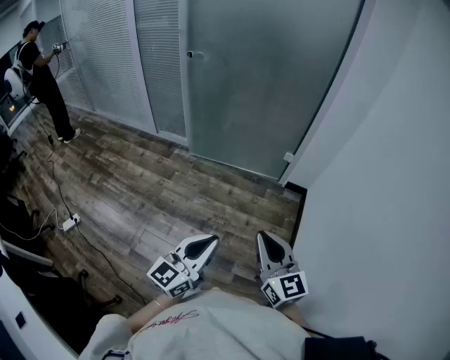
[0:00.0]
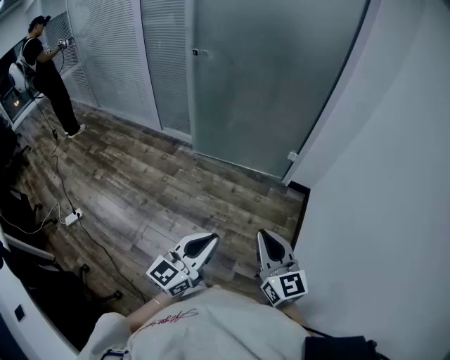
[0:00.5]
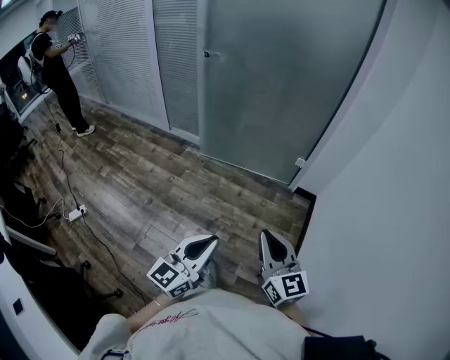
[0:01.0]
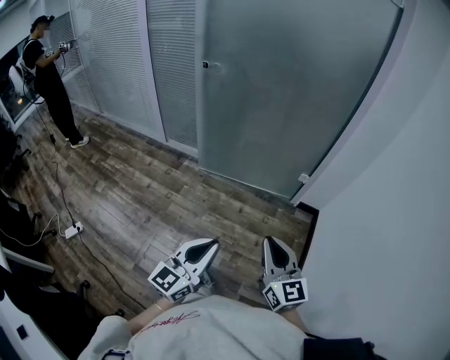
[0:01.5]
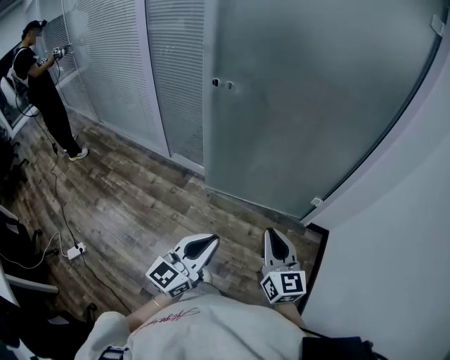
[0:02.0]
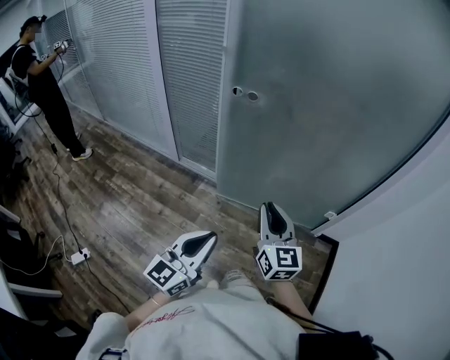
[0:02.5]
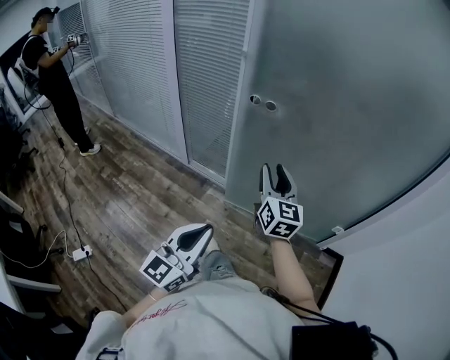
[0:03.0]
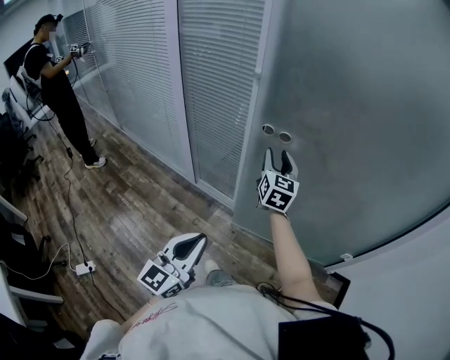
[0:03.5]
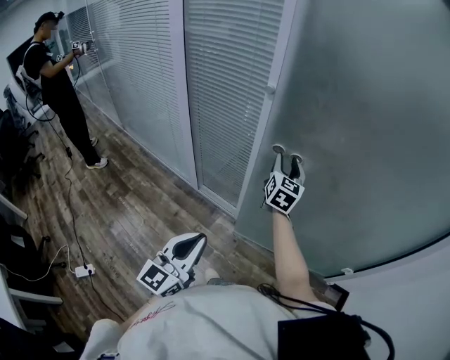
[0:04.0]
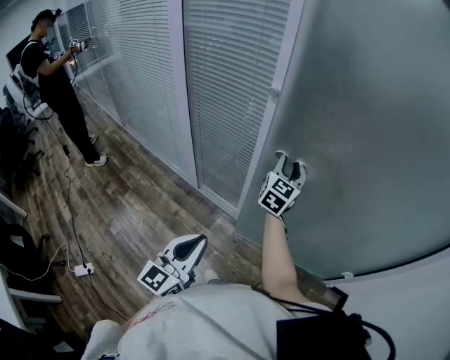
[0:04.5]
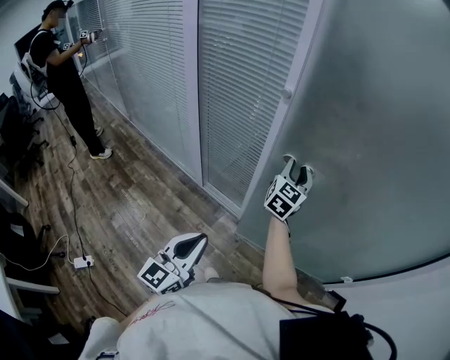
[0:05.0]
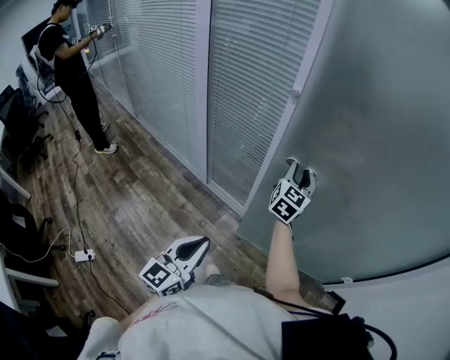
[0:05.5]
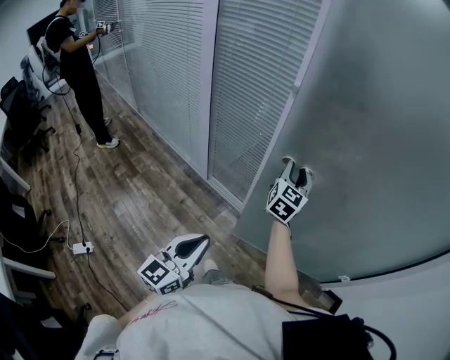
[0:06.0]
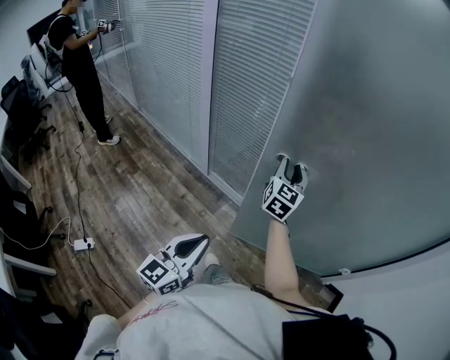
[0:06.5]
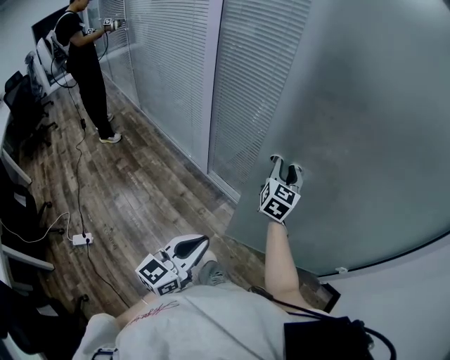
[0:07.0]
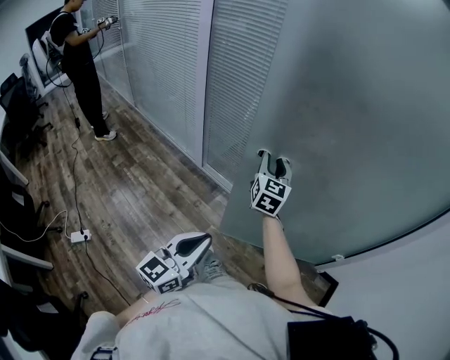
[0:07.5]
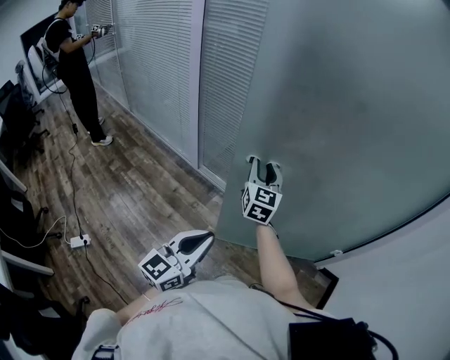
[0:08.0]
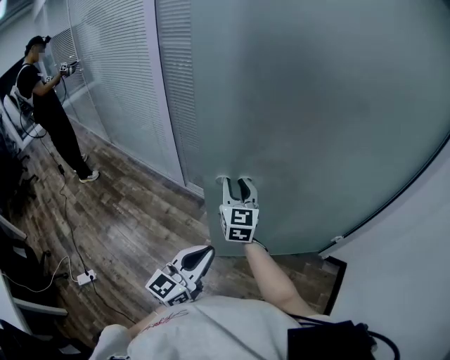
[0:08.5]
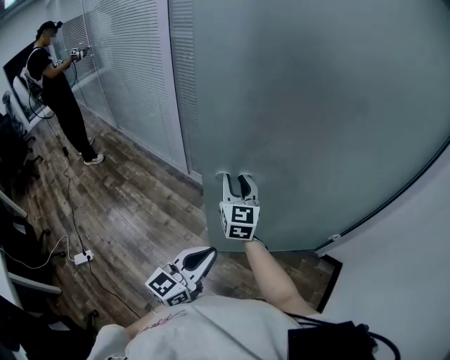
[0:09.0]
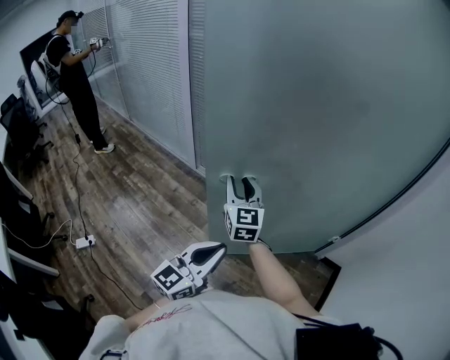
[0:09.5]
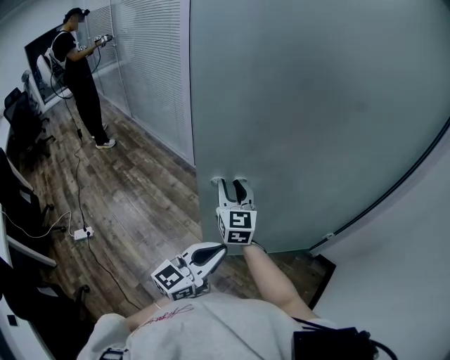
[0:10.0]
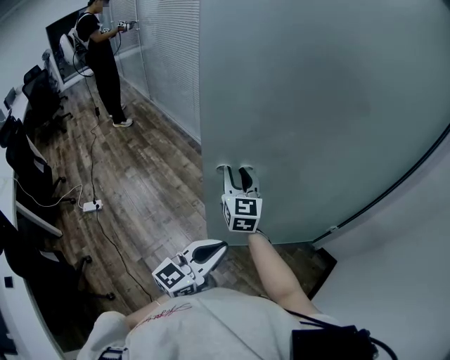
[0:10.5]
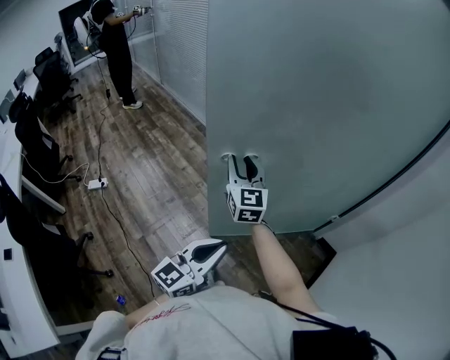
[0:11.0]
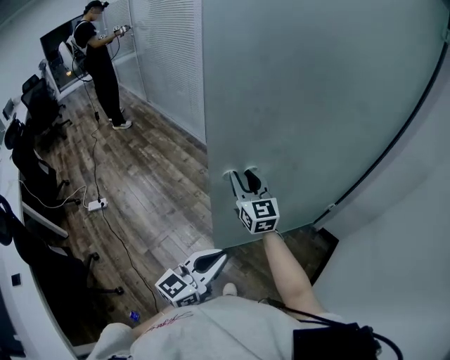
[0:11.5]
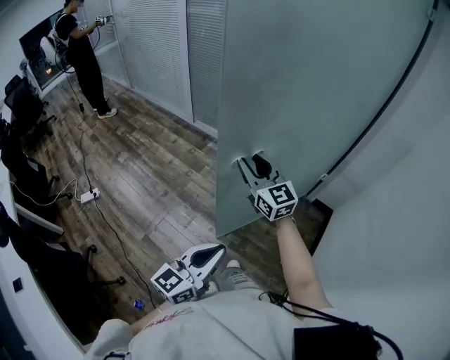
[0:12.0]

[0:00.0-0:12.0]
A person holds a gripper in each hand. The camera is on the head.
0:00.0 to 0:02.0: The grippers both shift forward and to the left by roughly 35 cm.
0:02.0 to 0:04.0: The left gripper is displaced to the left and forward by some 35 cm, while the right gripper travels forward and to the left by about 60 cm, and opens.
0:04.0 to 0:06.0: The right gripper shifts about 5 cm backward.
0:06.0 to 0:08.0: The left gripper goes roughly 15 cm backward and to the right; the right gripper travels backward by roughly 15 cm.
0:08.0 to 0:10.0: The left gripper goes about 20 cm to the right and backward, while the right gripper heads backward, covering about 20 cm.
0:10.0 to 0:12.0: The left gripper moves backward, about 30 cm. Meanwhile the right gripper travels backward and to the right by some 25 cm.

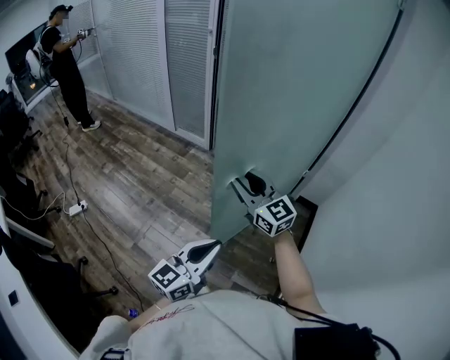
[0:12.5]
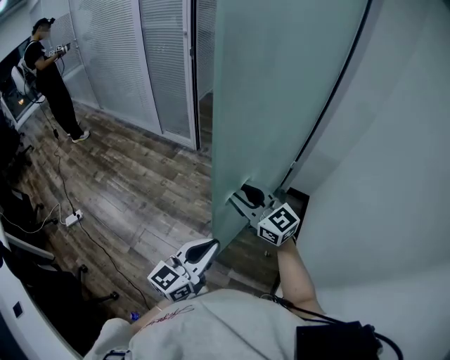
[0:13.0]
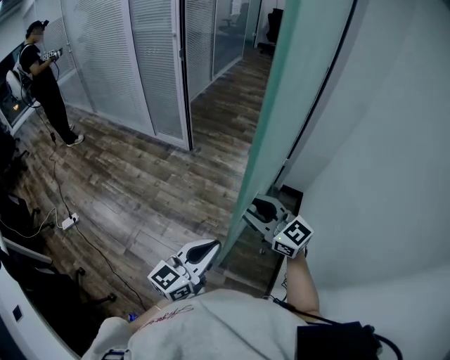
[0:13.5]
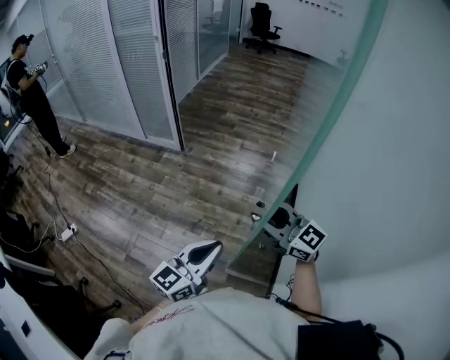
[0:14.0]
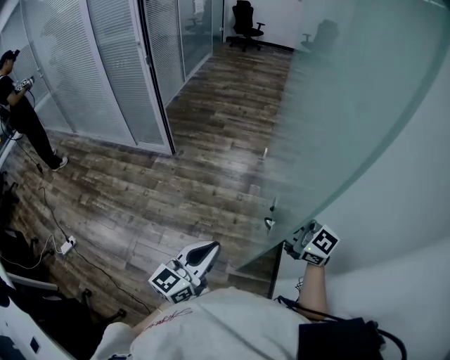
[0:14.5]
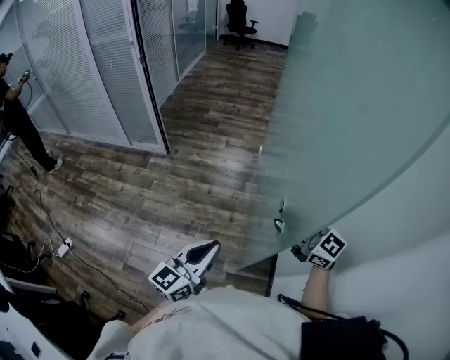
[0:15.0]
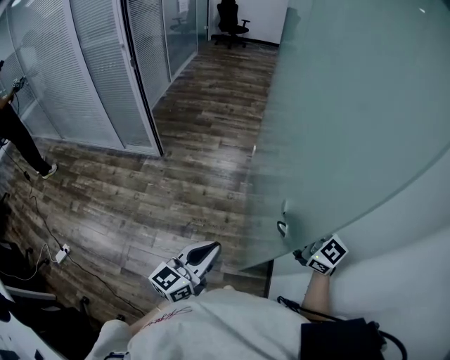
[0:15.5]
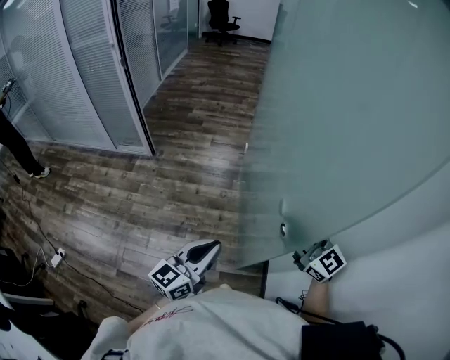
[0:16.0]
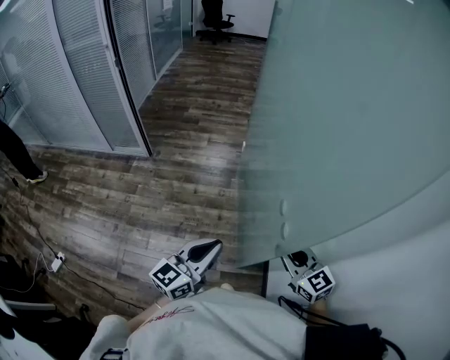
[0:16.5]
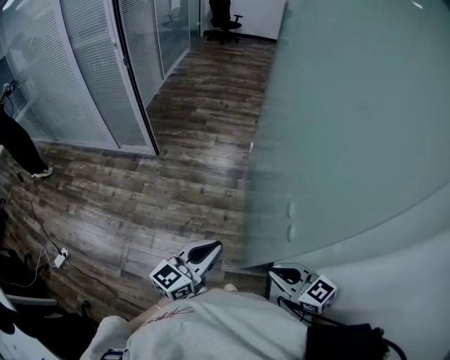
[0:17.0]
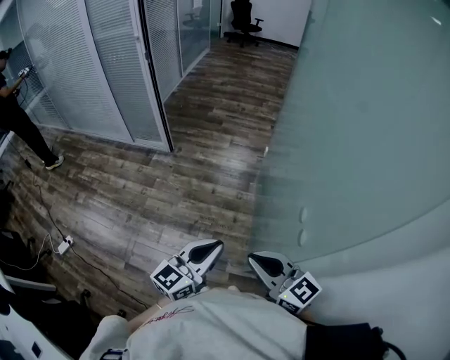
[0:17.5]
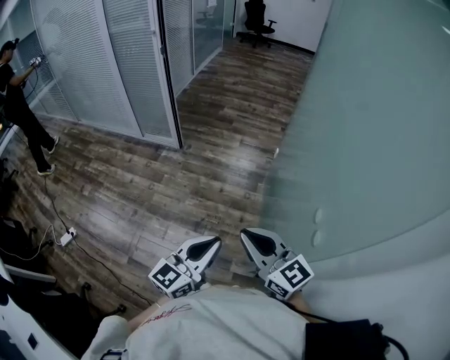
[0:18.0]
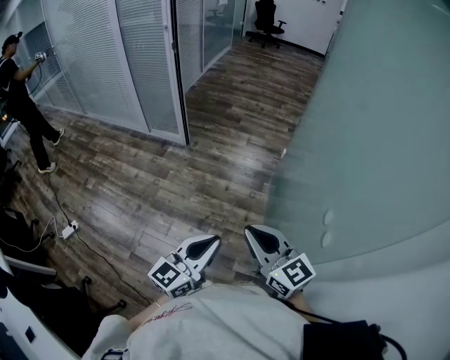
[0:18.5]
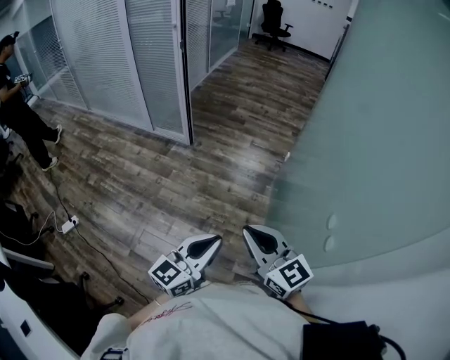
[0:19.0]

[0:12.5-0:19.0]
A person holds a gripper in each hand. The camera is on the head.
0:12.5 to 0:14.5: The right gripper shifts about 30 cm to the right and backward, while the left gripper travels to the right by some 10 cm.
0:14.5 to 0:17.0: The right gripper is displaced backward and downward by approximately 15 cm, rotates roughly 30 degrees, and closes.
0:17.0 to 0:19.0: The right gripper goes roughly 25 cm to the left, forward and upward, and turns by some 20 degrees. The left gripper heads to the left, covering approximately 10 cm.

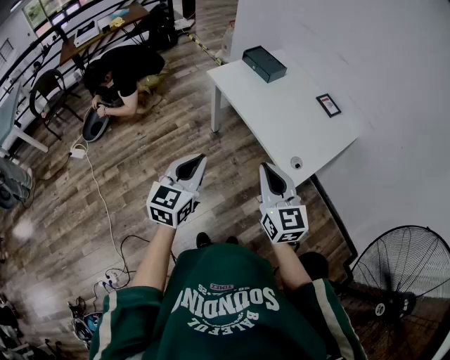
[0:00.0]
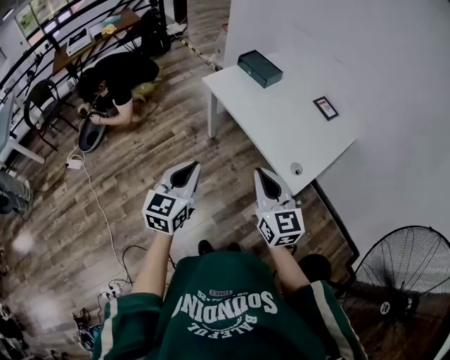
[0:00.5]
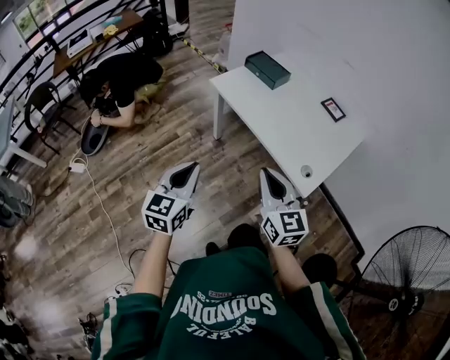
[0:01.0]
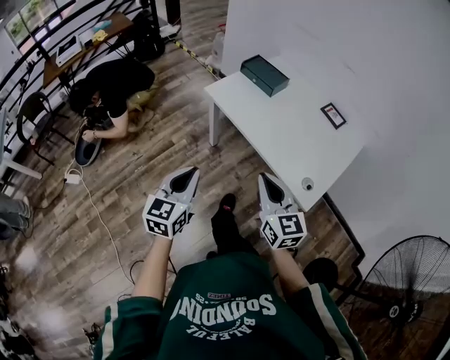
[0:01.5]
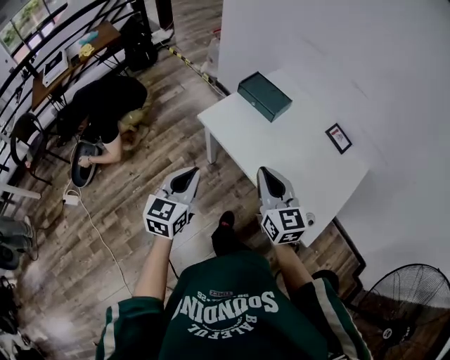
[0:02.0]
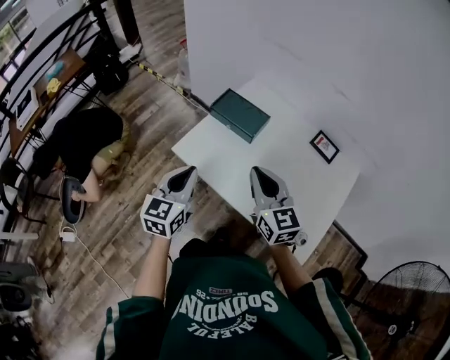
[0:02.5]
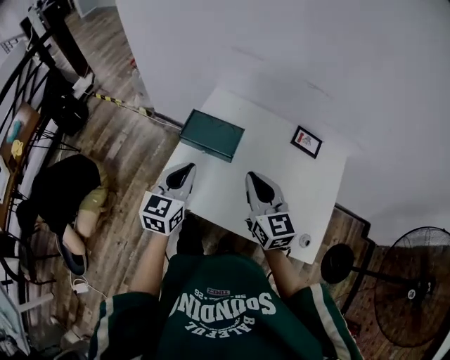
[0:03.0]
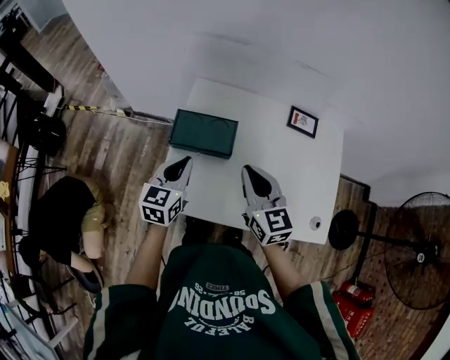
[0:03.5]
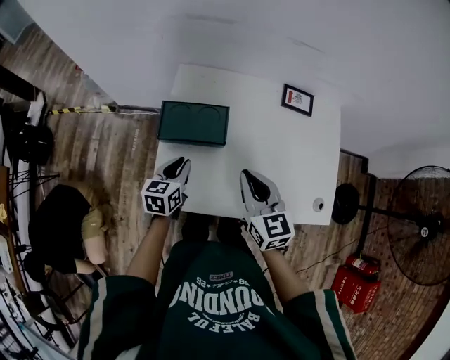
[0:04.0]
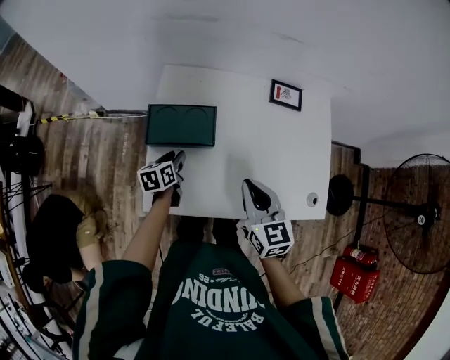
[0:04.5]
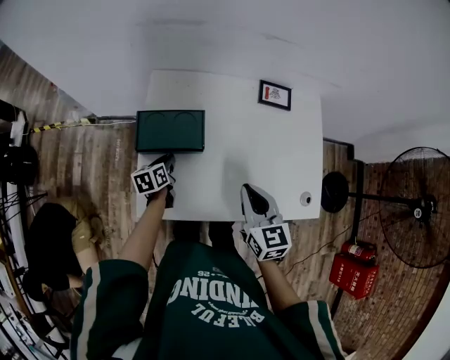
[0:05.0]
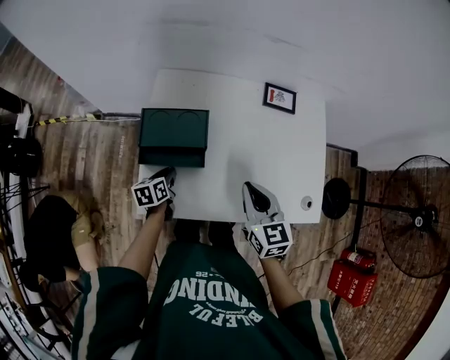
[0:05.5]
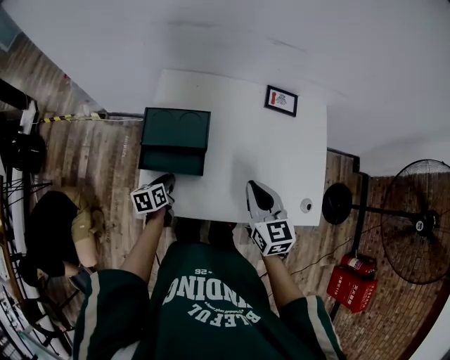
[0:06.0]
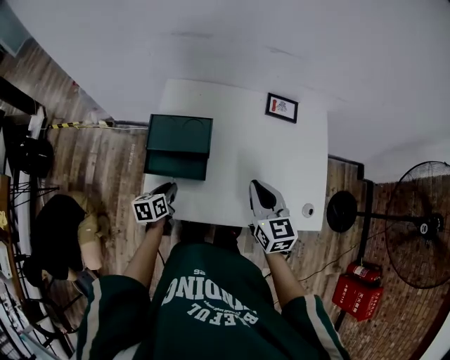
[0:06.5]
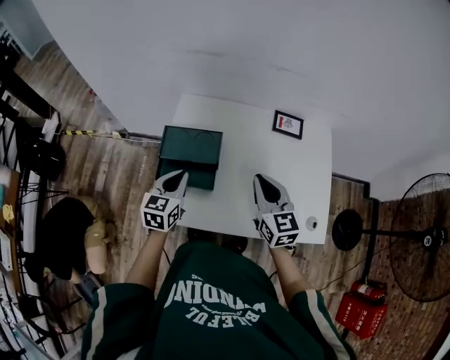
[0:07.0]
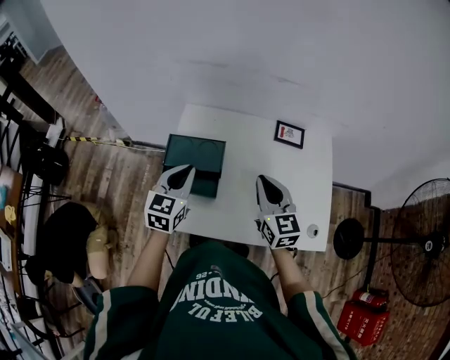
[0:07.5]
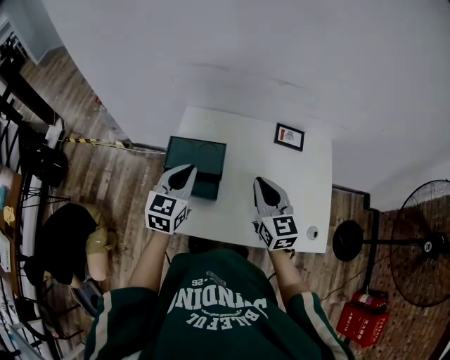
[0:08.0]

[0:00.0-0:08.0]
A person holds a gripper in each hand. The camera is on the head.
0:00.0 to 0:02.0: The grippers both shift forward by some 30 cm.
0:02.0 to 0:04.0: The right gripper shifts by approximately 25 cm, and rotates some 40 degrees, while the left gripper changes place by approximately 40 cm, and swivels roughly 40 degrees.
0:04.0 to 0:06.0: The right gripper shifts some 10 cm to the right; the left gripper travels downward by about 10 cm, and rotates roughly 30 degrees.
0:06.0 to 0:08.0: The right gripper travels upward by about 5 cm, while the left gripper goes roughly 25 cm upward, and rolls clockwise, seen from behind, by some 40 degrees.
